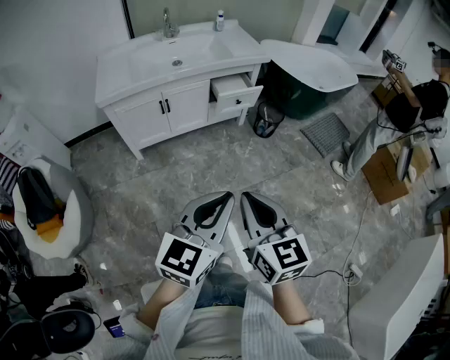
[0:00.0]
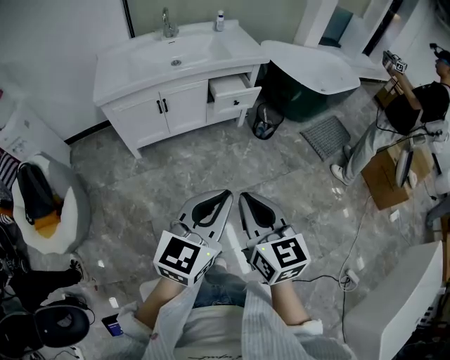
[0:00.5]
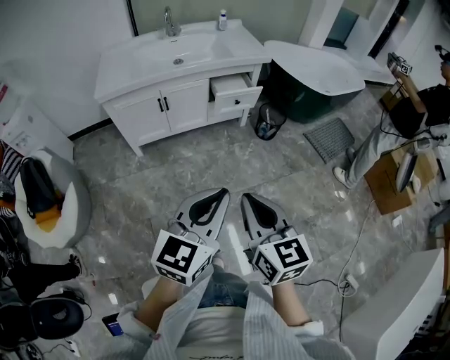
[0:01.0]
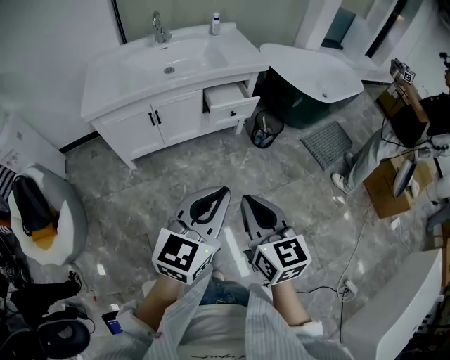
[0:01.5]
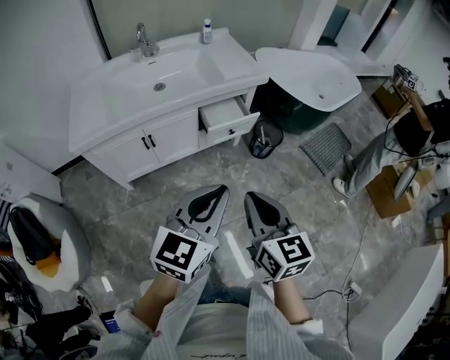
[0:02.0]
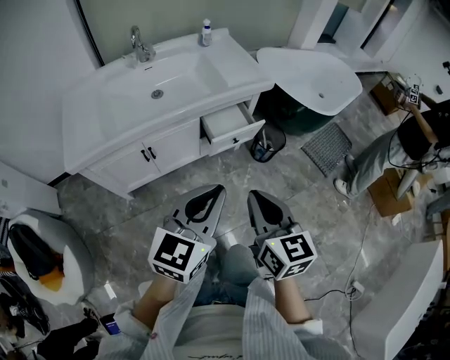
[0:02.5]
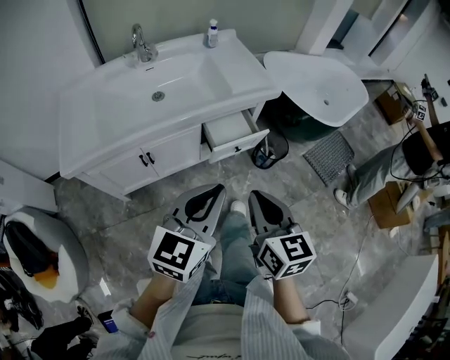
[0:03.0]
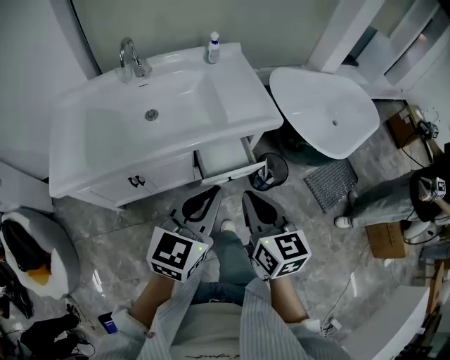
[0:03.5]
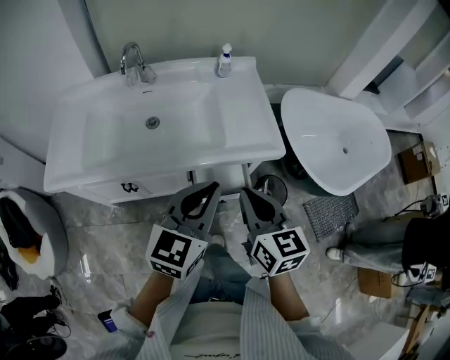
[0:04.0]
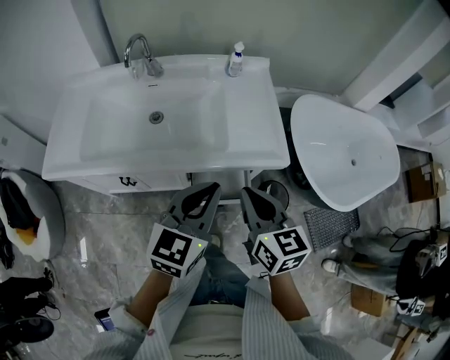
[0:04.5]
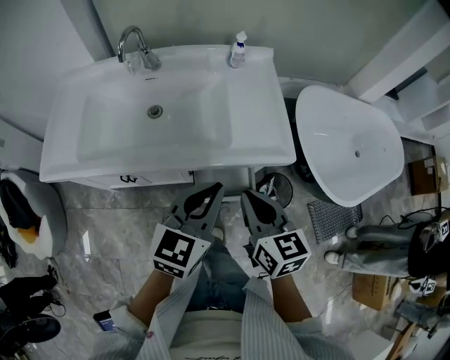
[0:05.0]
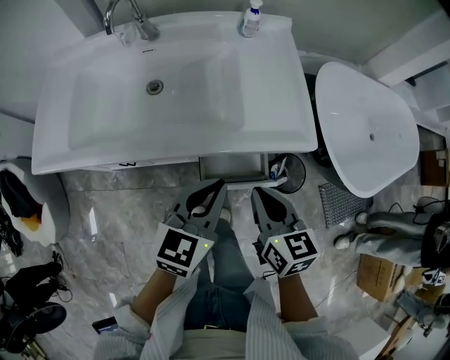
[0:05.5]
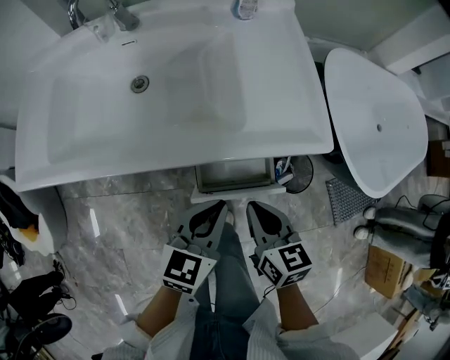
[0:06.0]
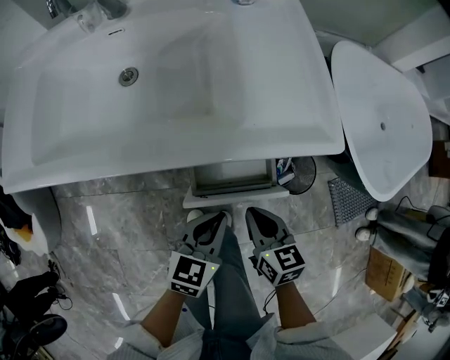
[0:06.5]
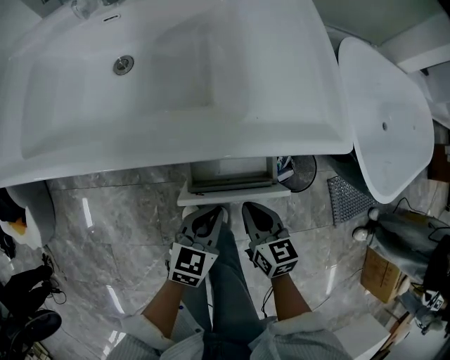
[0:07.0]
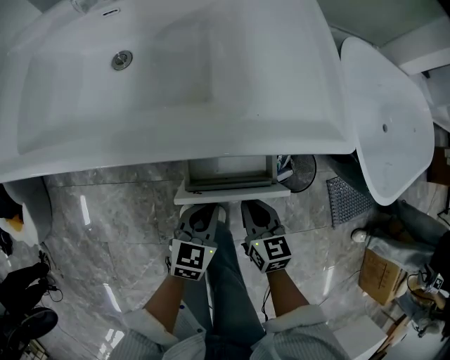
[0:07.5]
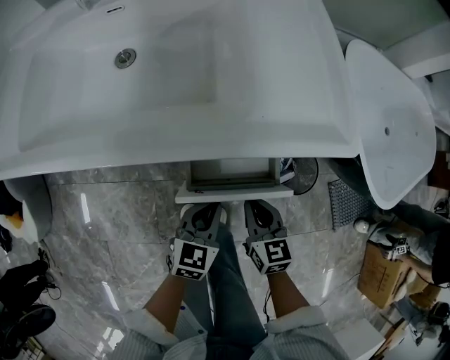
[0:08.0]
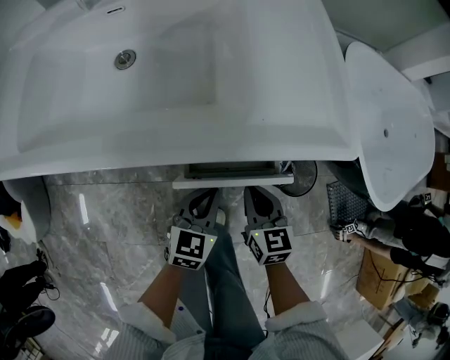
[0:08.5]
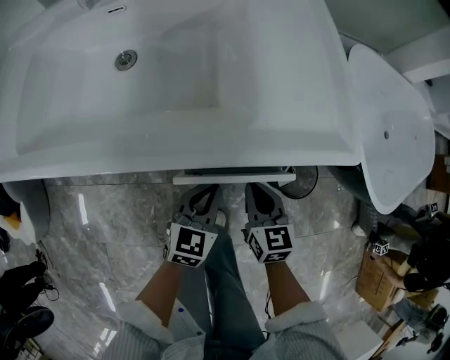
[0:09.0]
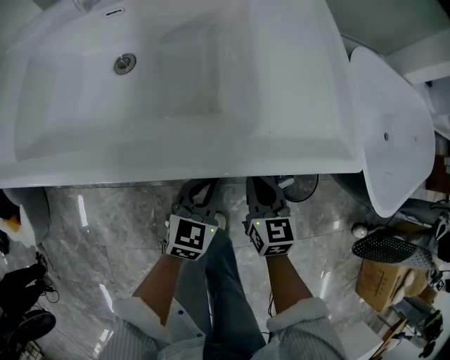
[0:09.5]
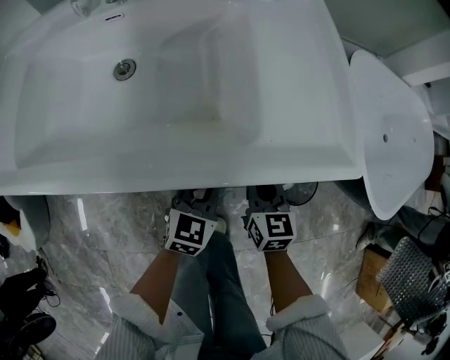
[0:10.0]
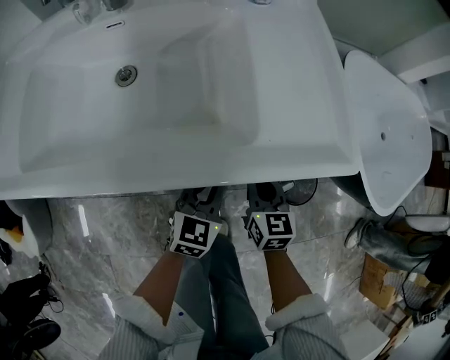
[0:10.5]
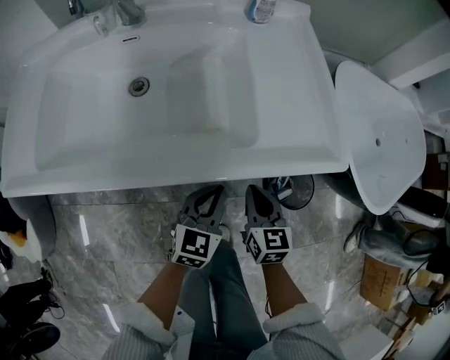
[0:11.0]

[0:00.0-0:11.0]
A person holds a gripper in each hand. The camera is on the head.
0:00.0 to 0:02.0: Both grippers move forward, roughly 25 cm.
0:02.0 to 0:03.5: The two grippers go about 25 cm forward.
0:03.5 to 0:05.5: Both grippers move forward and downward, approximately 15 cm.
0:05.5 to 0:07.5: The two grippers go about 25 cm downward.
0:07.5 to 0:09.0: The grippers both shift forward by about 5 cm.
0:09.0 to 0:11.0: The left gripper goes about 5 cm upward.

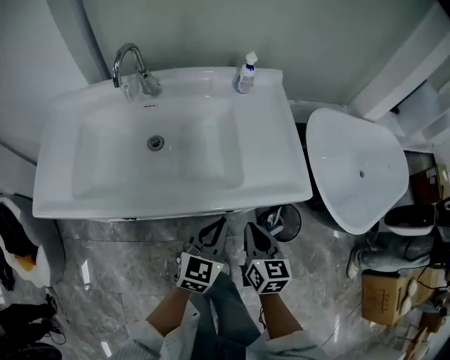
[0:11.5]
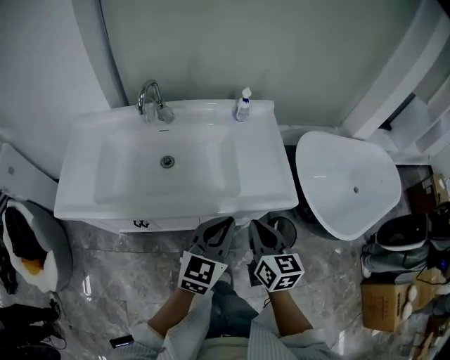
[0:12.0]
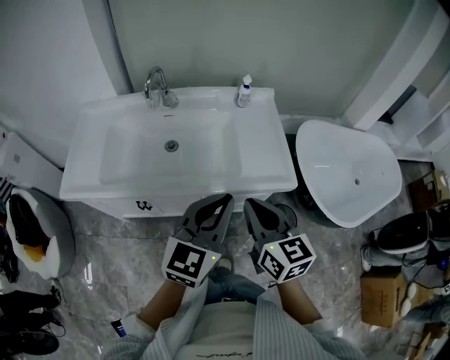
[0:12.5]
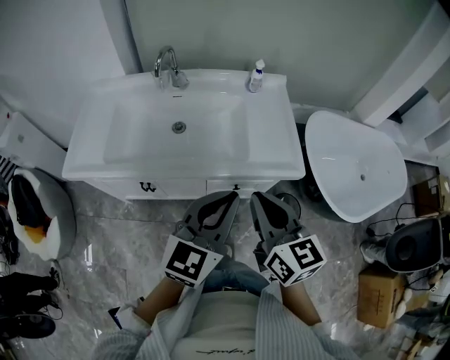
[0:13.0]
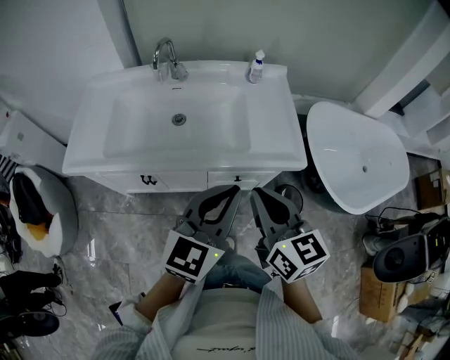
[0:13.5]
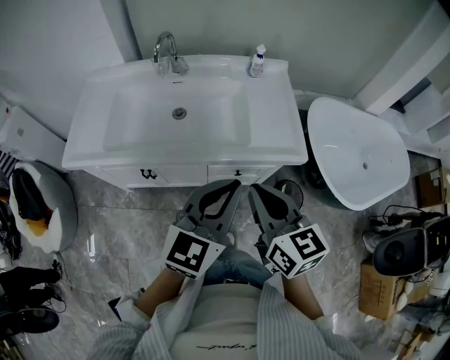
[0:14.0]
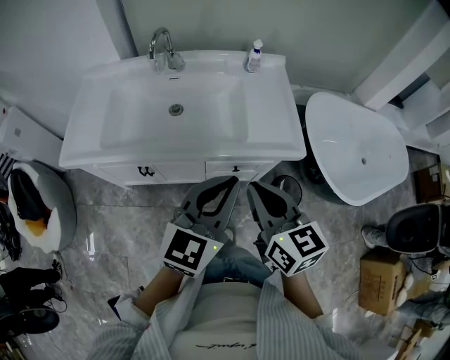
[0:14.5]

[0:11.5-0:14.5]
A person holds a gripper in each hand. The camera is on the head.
0:11.5 to 0:13.0: Both grippers travel together upward, approximately 25 cm. The right gripper changes its angle by about 20 degrees.
0:13.0 to 0:14.5: The grippers make only small movements.

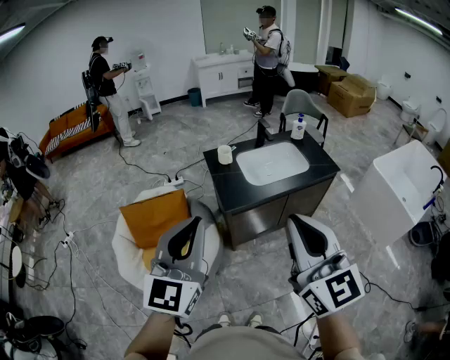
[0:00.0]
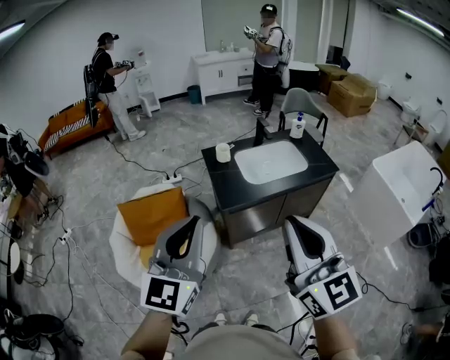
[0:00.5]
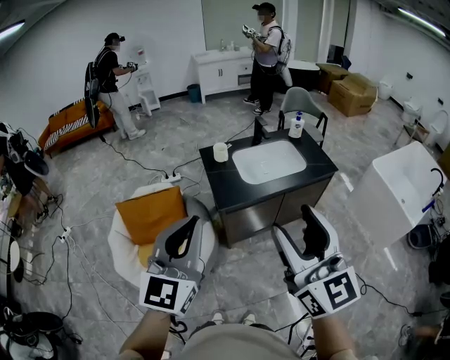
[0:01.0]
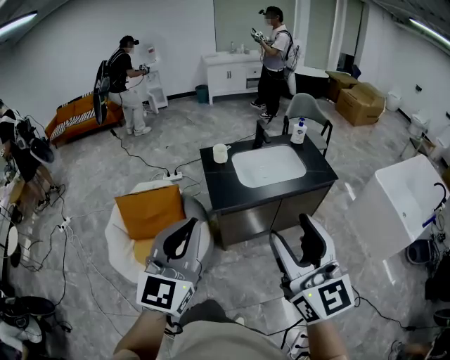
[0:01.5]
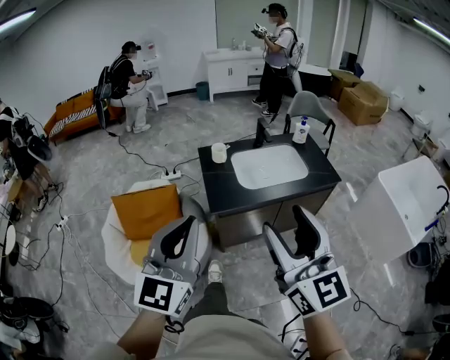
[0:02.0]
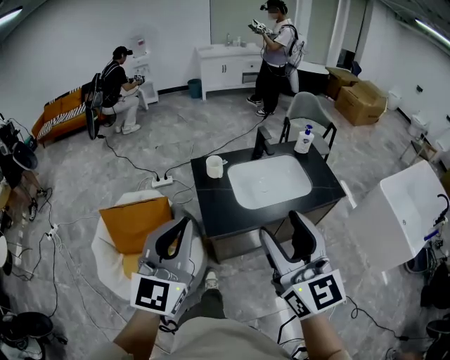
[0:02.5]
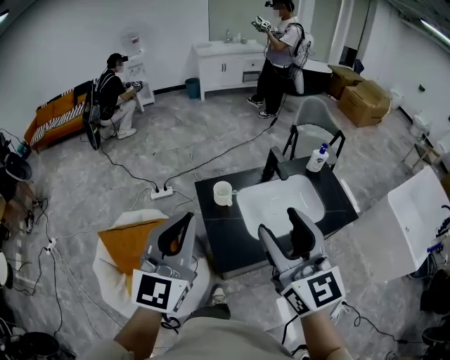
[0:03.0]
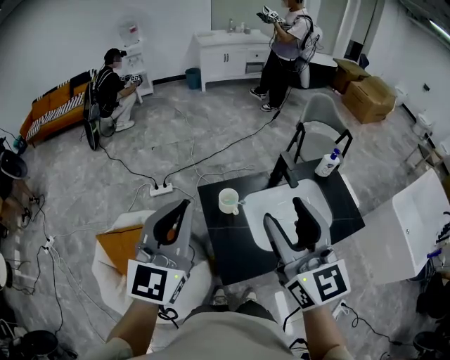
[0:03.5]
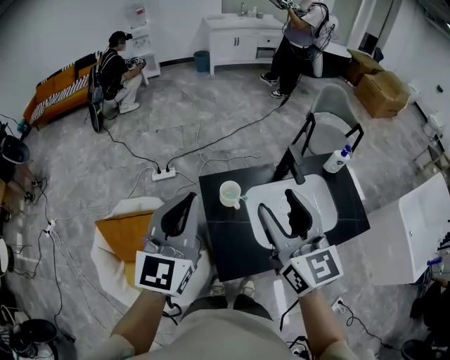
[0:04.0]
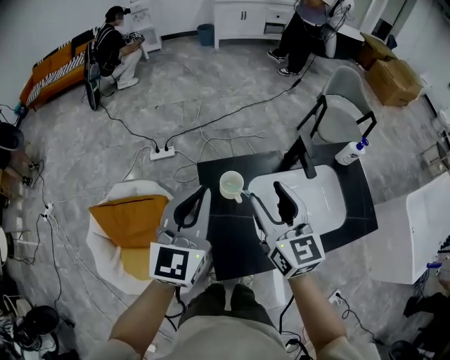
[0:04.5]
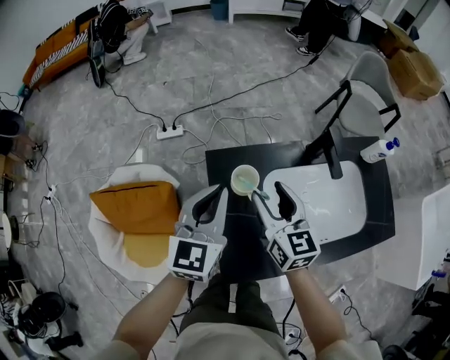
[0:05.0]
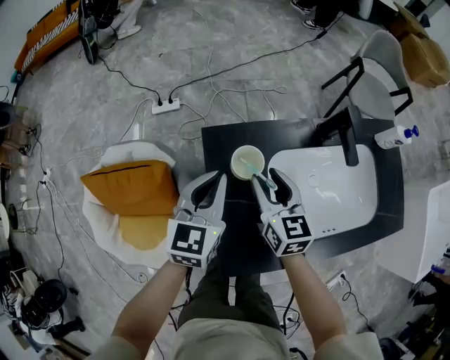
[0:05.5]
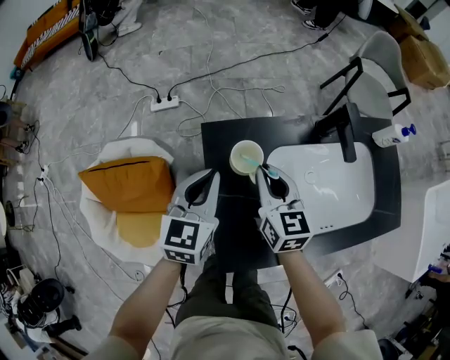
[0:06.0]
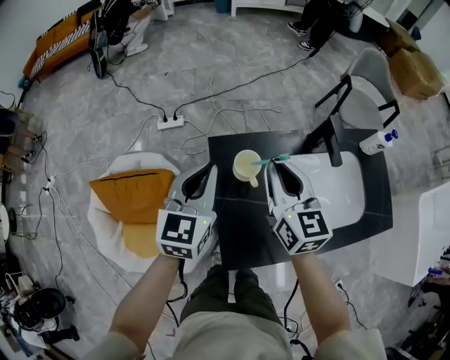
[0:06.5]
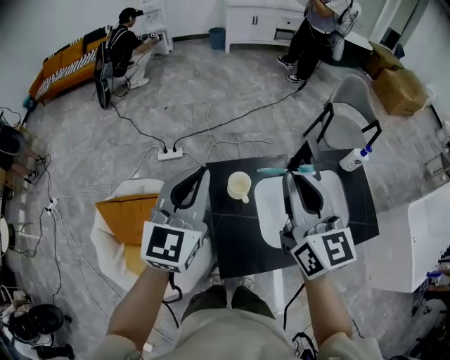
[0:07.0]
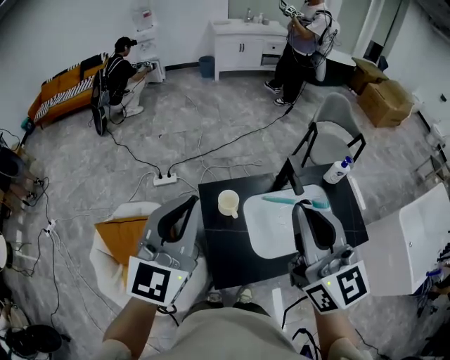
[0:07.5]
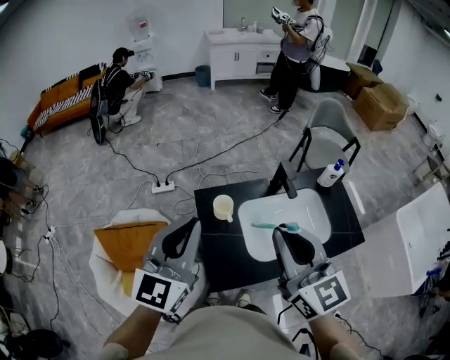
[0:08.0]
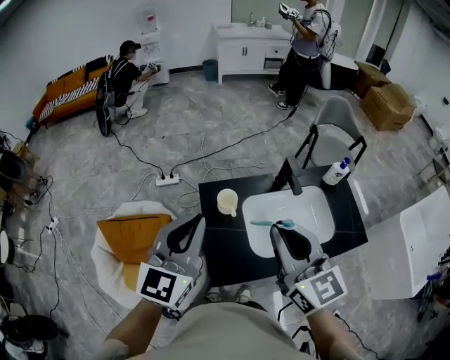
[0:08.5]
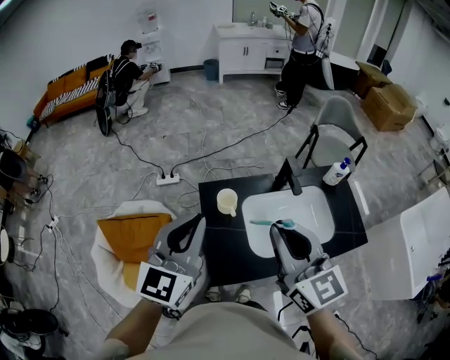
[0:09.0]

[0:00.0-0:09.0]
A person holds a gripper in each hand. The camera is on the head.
0:00.0 to 0:02.0: The right gripper shifts roughly 10 cm forward and to the right, and opens its fingers. The left gripper moves to the right, about 5 cm.
0:02.0 to 0:04.5: Both grippers are carried forward, roughly 60 cm. The right gripper turns by approximately 20 degrees.
0:04.5 to 0:07.0: The left gripper travels downward and back again, about 20 cm each way. The right gripper reaches approximately 25 cm downward, then returns, and closes its fingers.
0:07.0 to 0:09.0: Both grippers move backward, some 10 cm.

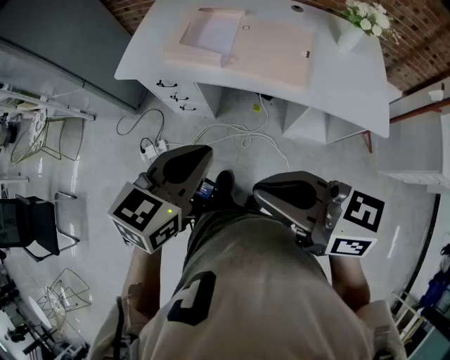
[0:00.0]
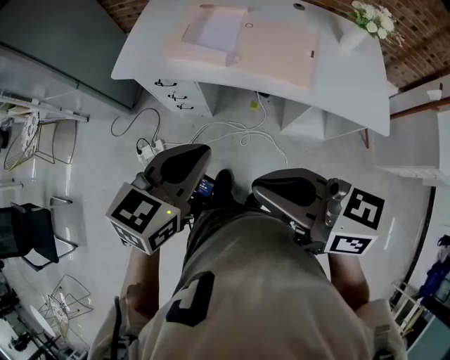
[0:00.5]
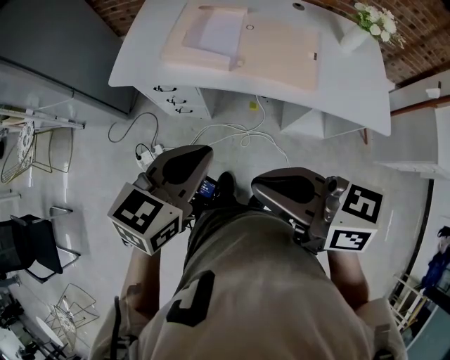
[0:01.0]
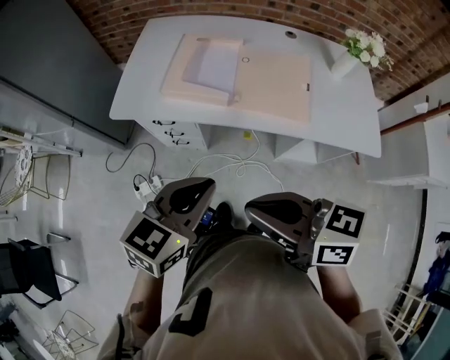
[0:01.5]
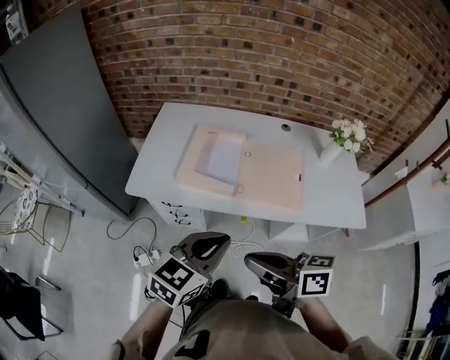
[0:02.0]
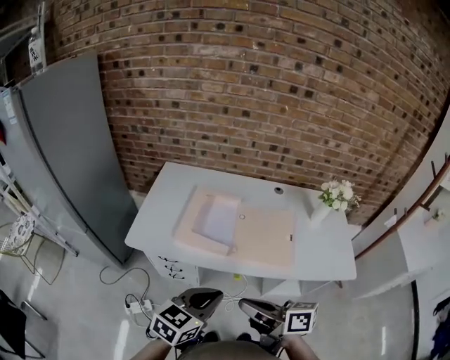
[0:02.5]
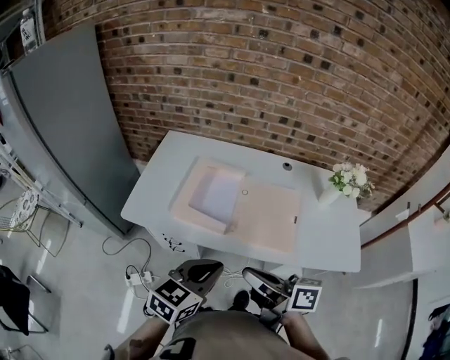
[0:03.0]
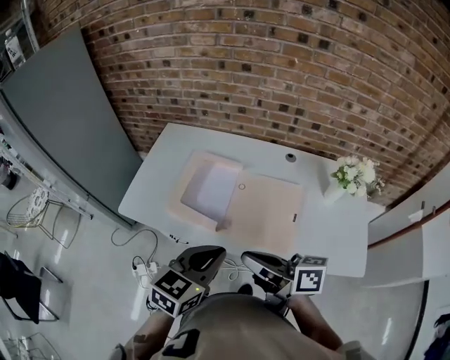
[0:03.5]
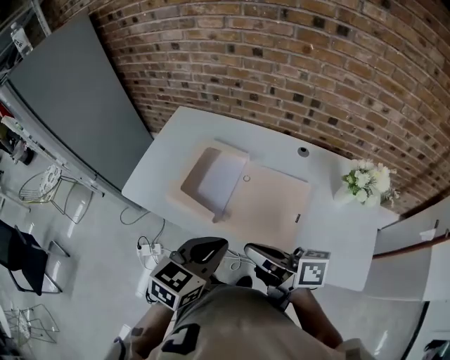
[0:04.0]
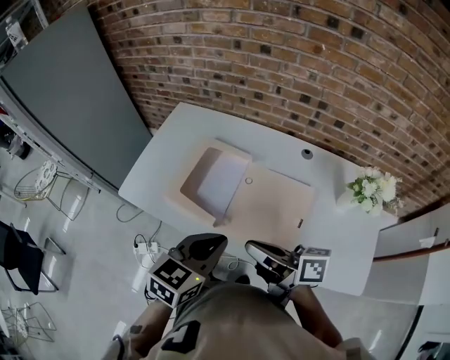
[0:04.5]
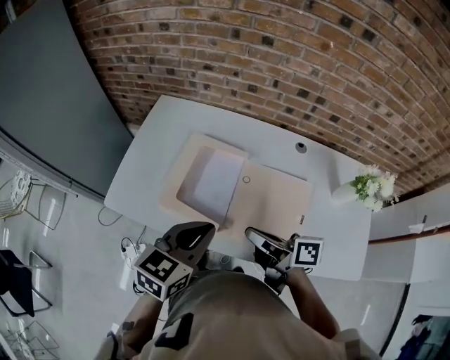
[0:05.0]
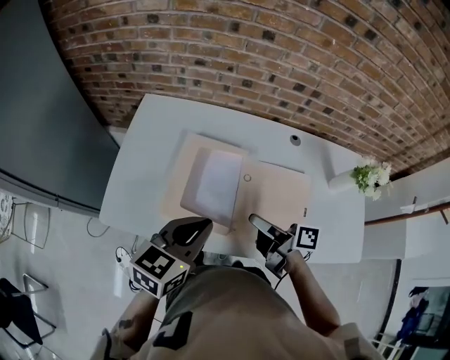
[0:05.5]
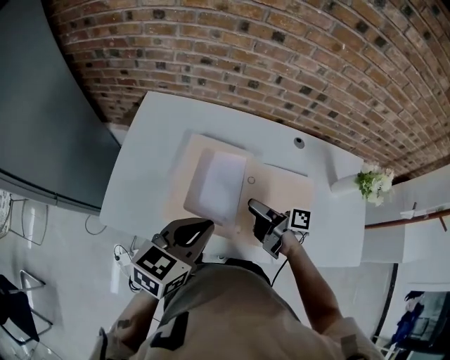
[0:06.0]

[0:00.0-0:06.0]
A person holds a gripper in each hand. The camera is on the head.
0:00.0 to 0:02.0: The left gripper shifts roughly 10 cm forward. The right gripper is displaced forward and to the left by roughly 15 cm, and rotates approximately 20 degrees.
0:02.0 to 0:04.0: The left gripper moves to the right and forward, some 20 cm. The right gripper travels forward and to the right by roughly 25 cm.
0:04.0 to 0:06.0: The left gripper shifts roughly 20 cm forward and to the left. Meanwhile the right gripper travels forward and downward by about 25 cm, changes its angle by roughly 30 degrees, and opens its fingers.
